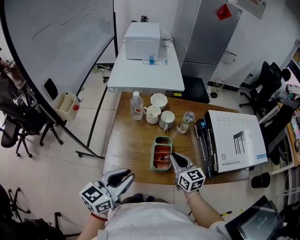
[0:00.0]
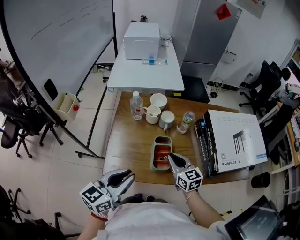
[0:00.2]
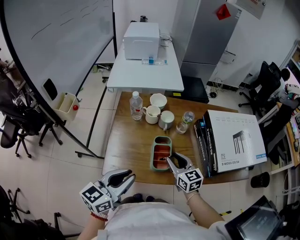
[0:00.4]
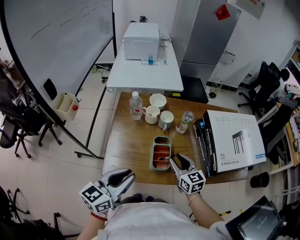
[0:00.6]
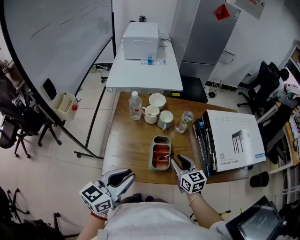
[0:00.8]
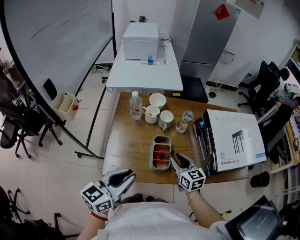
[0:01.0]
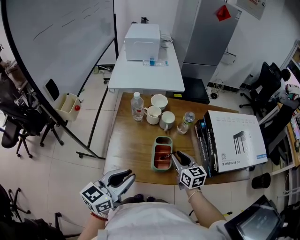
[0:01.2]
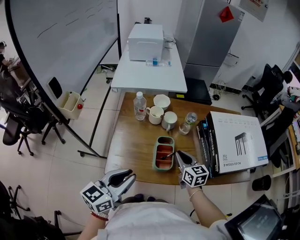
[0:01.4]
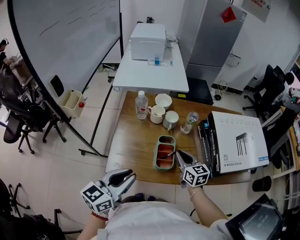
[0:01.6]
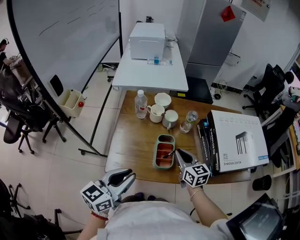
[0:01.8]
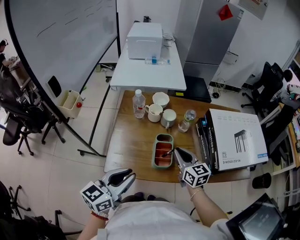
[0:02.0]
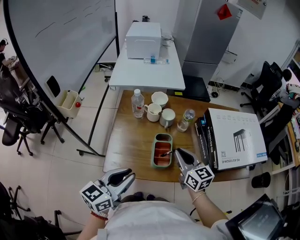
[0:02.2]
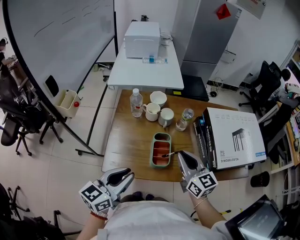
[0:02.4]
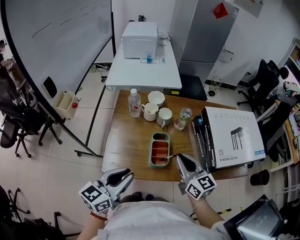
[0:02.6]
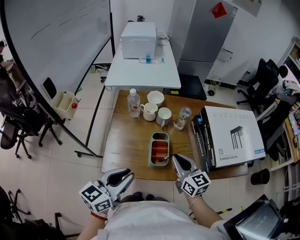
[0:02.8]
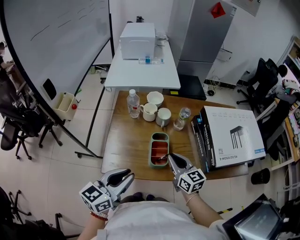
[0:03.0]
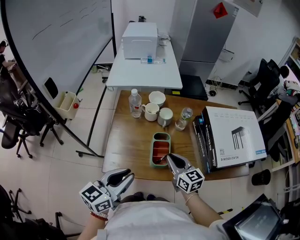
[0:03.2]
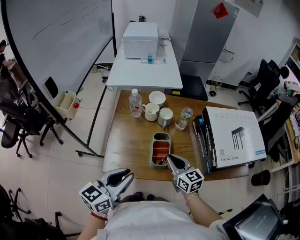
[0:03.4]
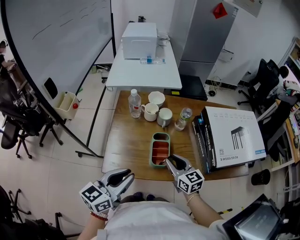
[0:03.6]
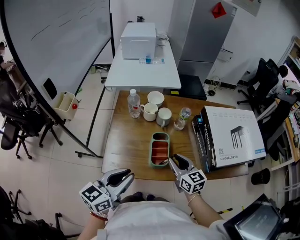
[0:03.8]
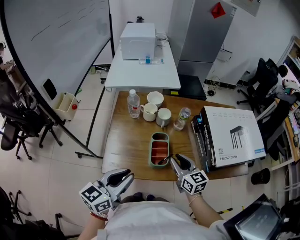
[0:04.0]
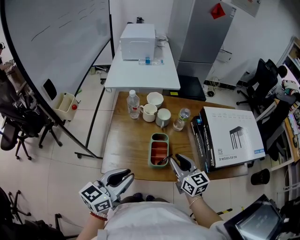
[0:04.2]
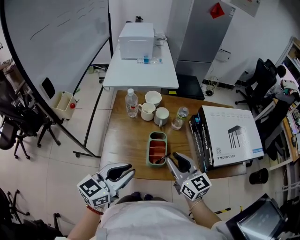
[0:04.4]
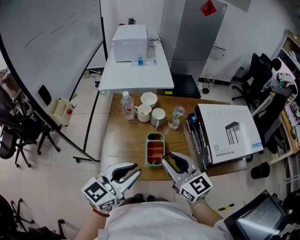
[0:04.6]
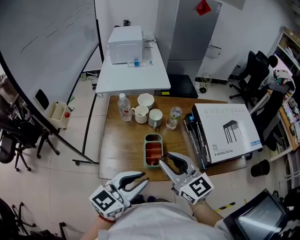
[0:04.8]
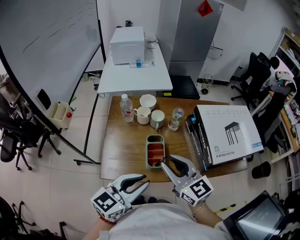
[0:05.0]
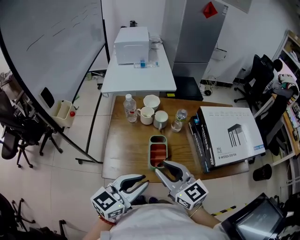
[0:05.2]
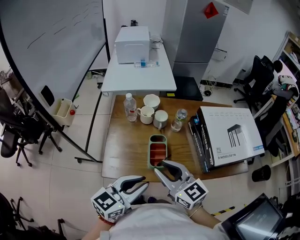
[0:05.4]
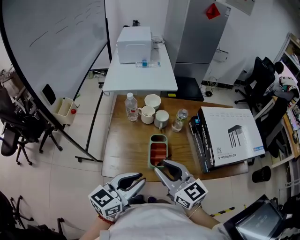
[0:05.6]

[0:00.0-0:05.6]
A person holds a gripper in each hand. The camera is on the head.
0:00.0 to 0:01.4: The right gripper opens, then closes again.
0:01.4 to 0:02.8: The right gripper moves upward and backward, some 10 cm.
0:02.8 to 0:04.2: The grippers stay close to where they were, moving slightly.
0:04.2 to 0:05.6: The right gripper goes some 15 cm upward, to the left and backward.

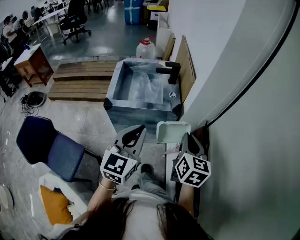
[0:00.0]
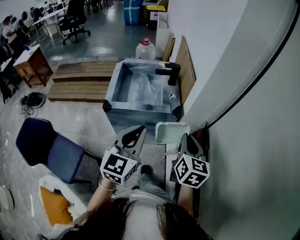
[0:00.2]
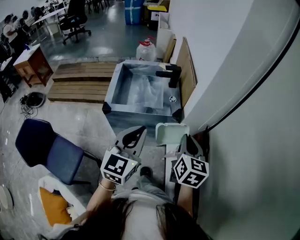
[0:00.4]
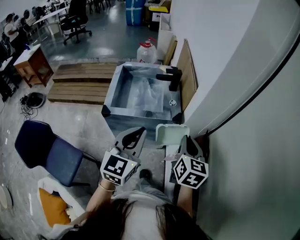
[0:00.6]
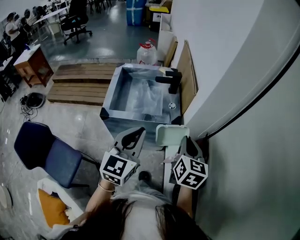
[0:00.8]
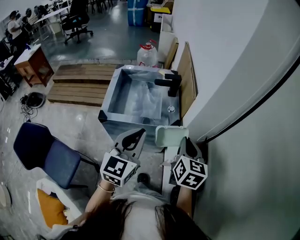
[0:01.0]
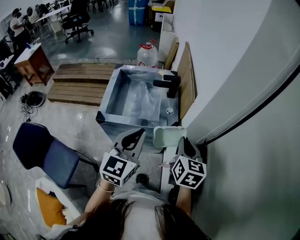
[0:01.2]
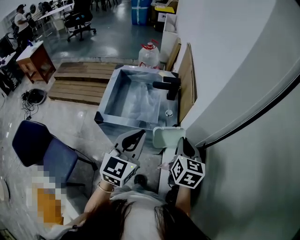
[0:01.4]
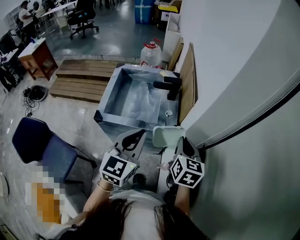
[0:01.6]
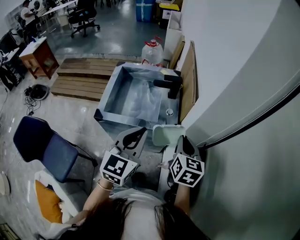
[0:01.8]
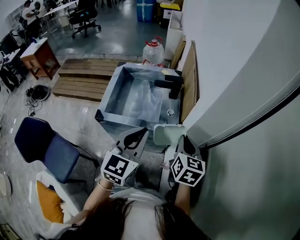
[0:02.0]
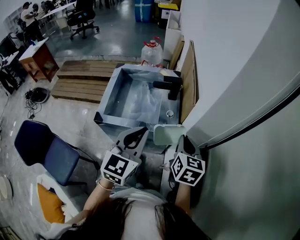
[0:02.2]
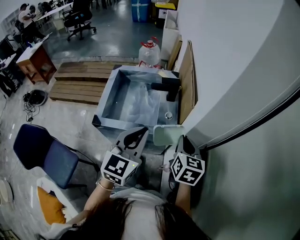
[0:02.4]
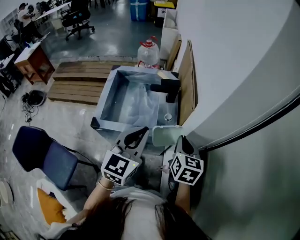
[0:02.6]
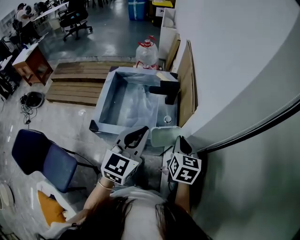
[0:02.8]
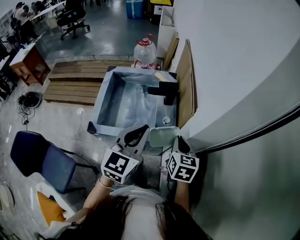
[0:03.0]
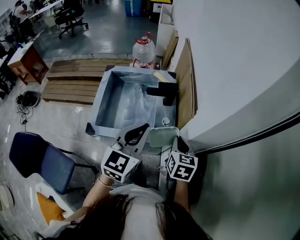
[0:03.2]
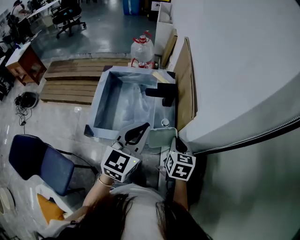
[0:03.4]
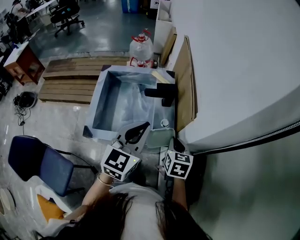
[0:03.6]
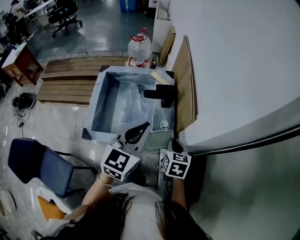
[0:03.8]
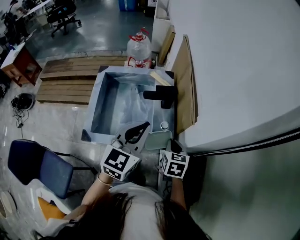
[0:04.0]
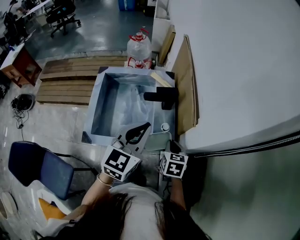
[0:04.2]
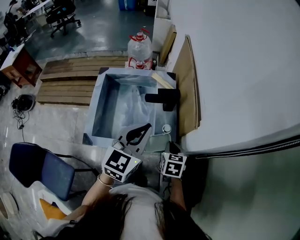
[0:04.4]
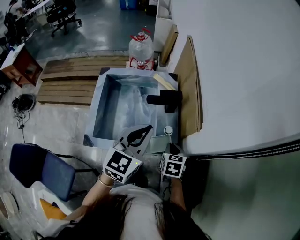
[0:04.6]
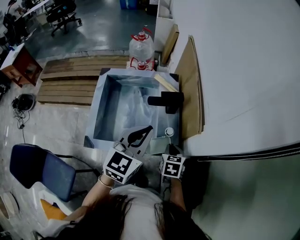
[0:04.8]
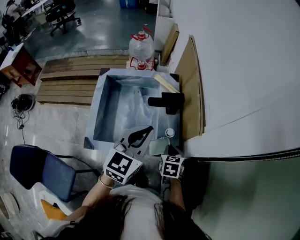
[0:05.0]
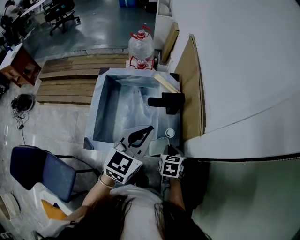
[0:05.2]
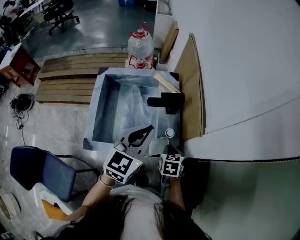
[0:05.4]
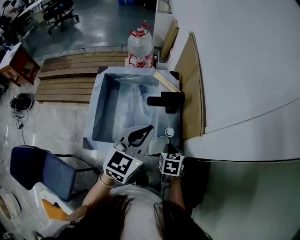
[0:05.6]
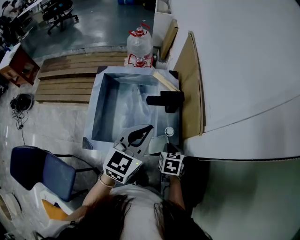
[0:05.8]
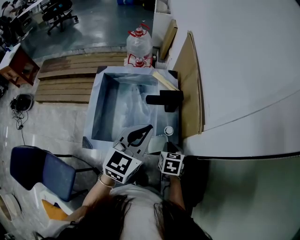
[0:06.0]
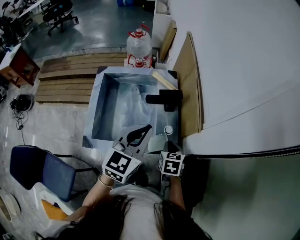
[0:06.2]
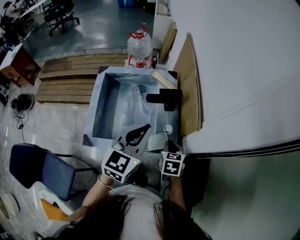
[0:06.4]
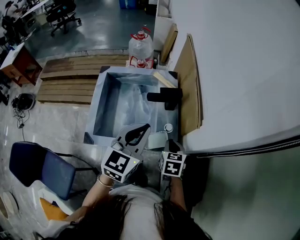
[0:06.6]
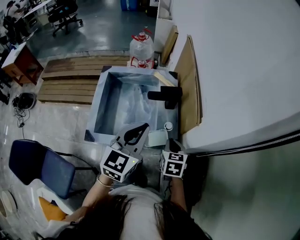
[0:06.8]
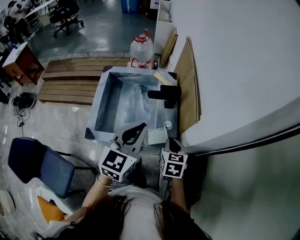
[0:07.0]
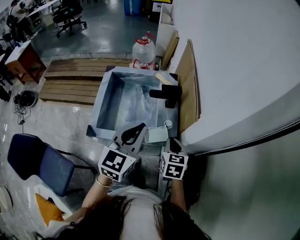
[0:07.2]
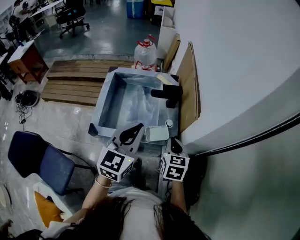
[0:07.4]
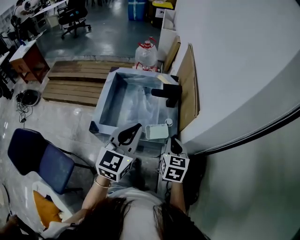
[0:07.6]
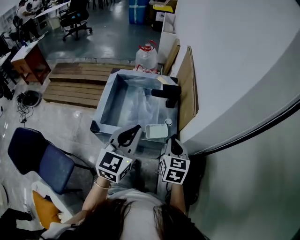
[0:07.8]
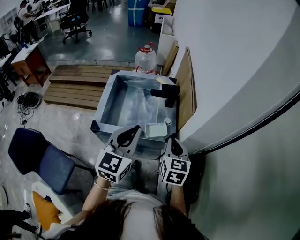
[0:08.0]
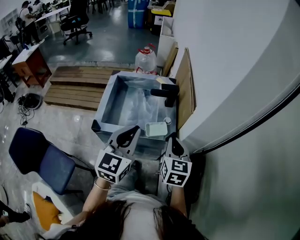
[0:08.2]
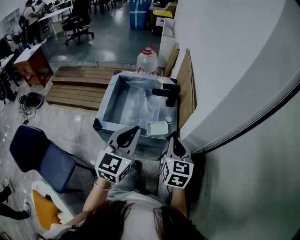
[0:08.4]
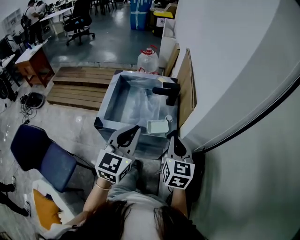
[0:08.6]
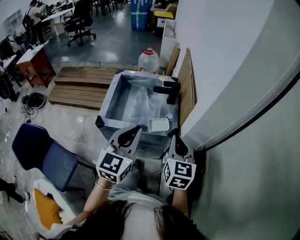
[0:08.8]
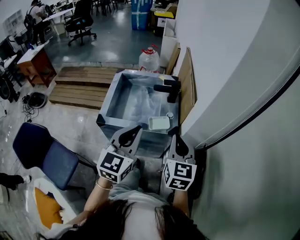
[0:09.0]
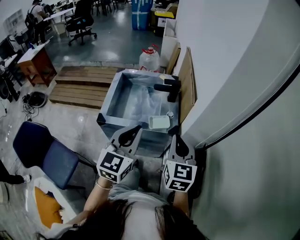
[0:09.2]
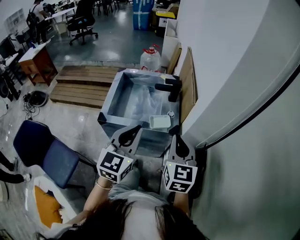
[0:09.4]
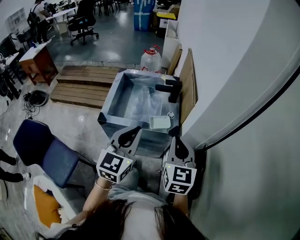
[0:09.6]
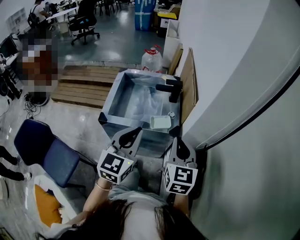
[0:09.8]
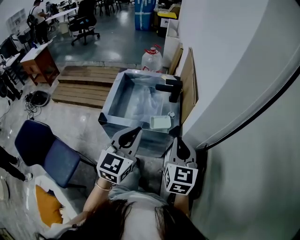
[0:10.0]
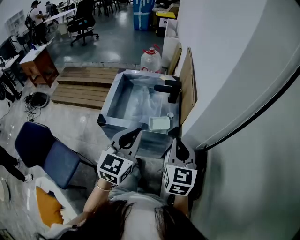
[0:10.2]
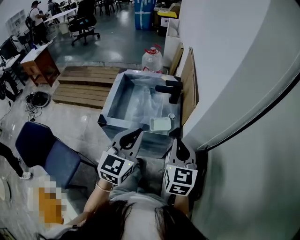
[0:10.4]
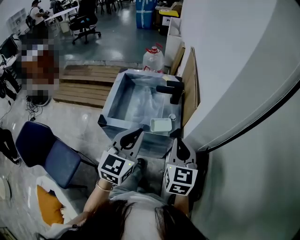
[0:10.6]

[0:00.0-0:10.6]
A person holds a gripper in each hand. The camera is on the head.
0:00.0 to 0:01.6: Both grippers travel together forward, roughly 15 cm.
0:01.6 to 0:03.0: The grippers both shift forward by roughly 10 cm.
0:03.0 to 0:04.6: The left gripper goes some 10 cm forward. Meanwhile the right gripper goes about 15 cm downward and forward.
0:04.6 to 0:06.0: There are only small adjustments of the grippers.
0:06.0 to 0:07.6: The left gripper goes some 10 cm backward. Meanwhile the right gripper is displaced upward and backward by roughly 15 cm, and swivels some 20 degrees.
0:07.6 to 0:09.0: The right gripper goes about 15 cm upward and backward. The left gripper heads backward, covering approximately 10 cm.
0:09.0 to 0:10.6: There are only small adjustments of the grippers.

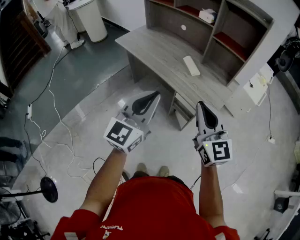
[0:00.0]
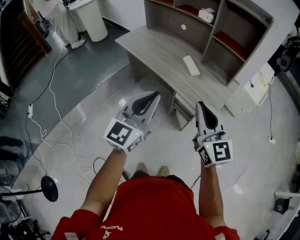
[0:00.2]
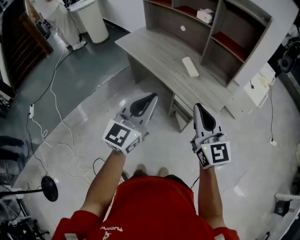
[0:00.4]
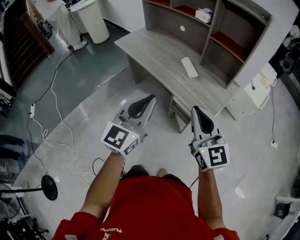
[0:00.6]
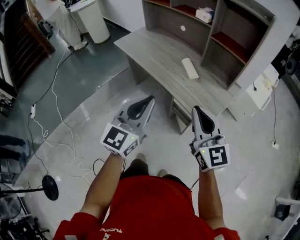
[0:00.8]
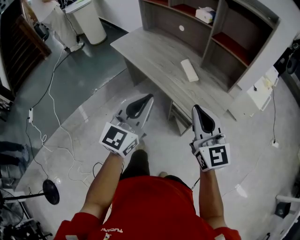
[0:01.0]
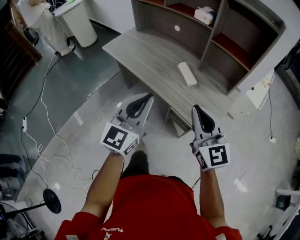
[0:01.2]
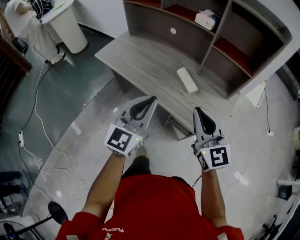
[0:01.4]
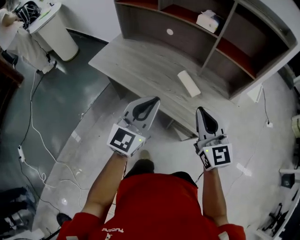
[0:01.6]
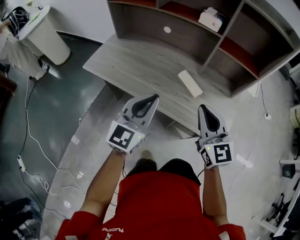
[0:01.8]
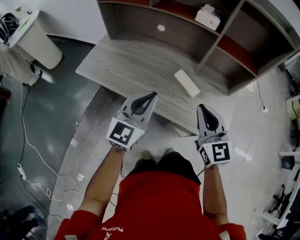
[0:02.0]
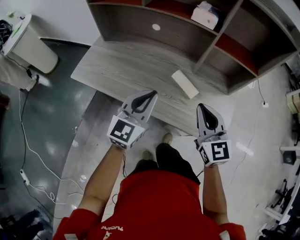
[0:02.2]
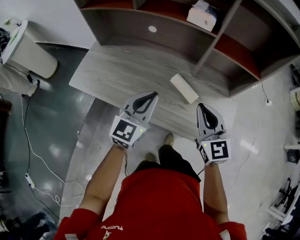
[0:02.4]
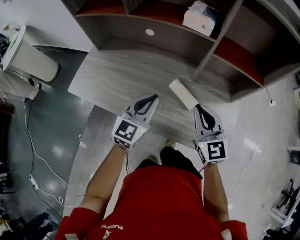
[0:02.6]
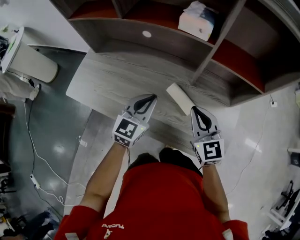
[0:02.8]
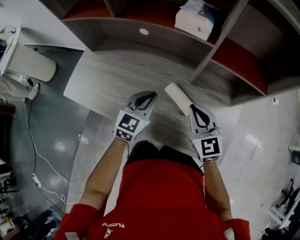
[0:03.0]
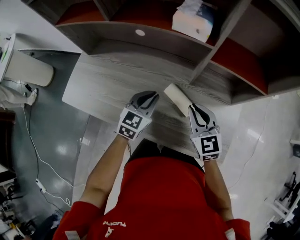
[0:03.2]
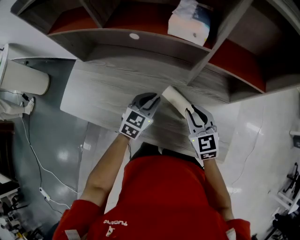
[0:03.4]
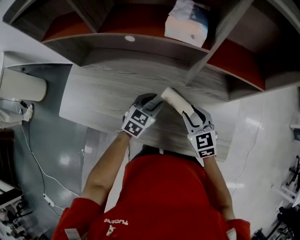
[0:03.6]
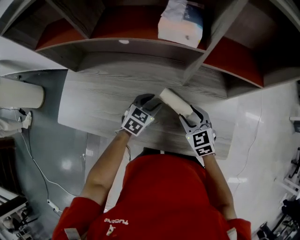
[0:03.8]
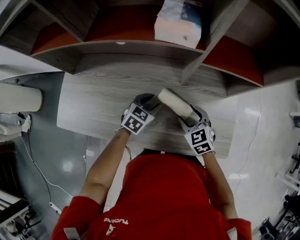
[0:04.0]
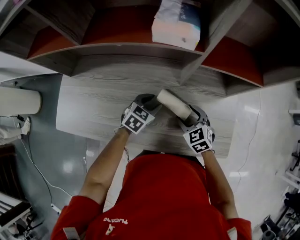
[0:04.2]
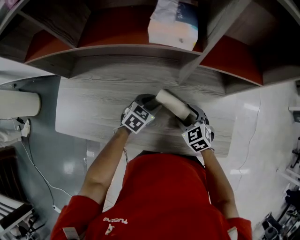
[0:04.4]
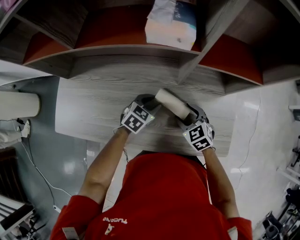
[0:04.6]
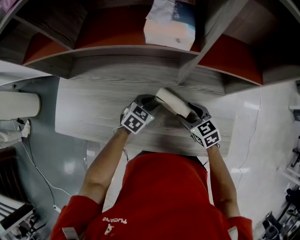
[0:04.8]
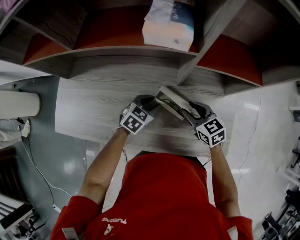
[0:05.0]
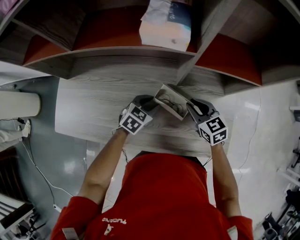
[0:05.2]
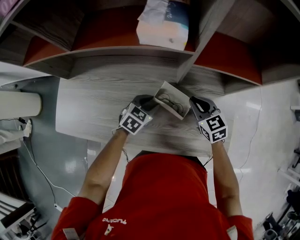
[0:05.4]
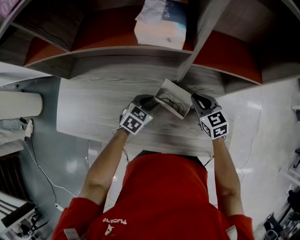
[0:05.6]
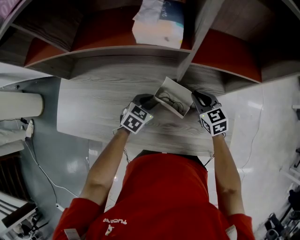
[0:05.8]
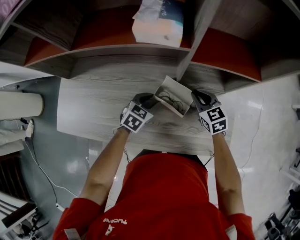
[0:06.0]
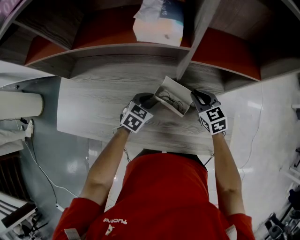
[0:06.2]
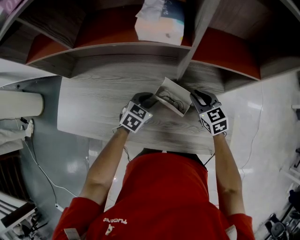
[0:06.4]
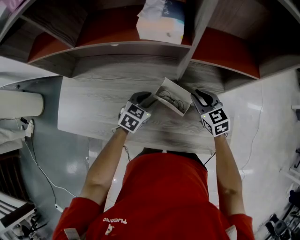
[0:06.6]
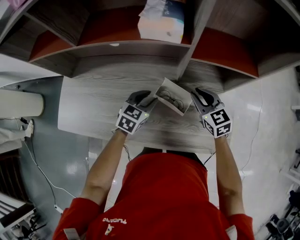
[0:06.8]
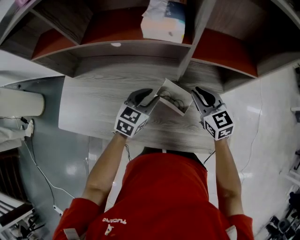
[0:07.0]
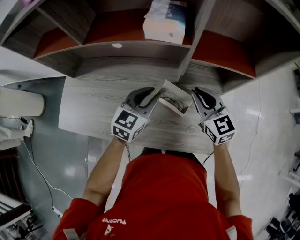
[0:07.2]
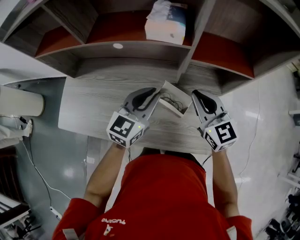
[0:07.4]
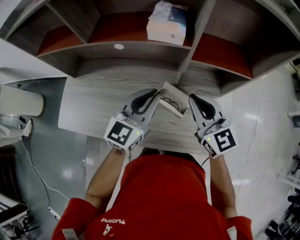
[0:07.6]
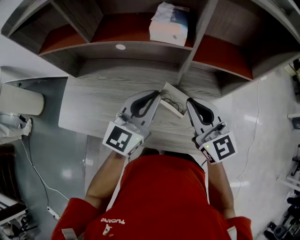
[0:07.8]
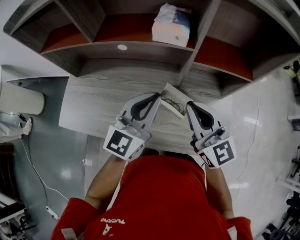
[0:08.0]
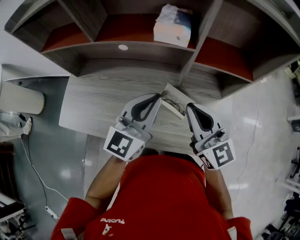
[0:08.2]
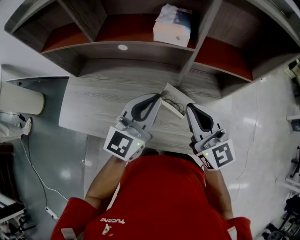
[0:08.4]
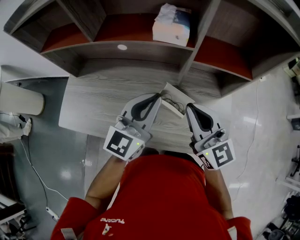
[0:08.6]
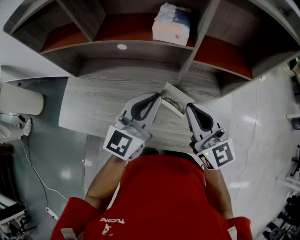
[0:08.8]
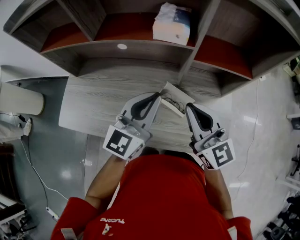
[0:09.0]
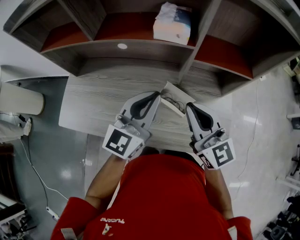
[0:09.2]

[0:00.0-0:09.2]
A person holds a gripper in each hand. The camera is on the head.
0:00.0 to 0:01.6: The two grippers go roughly 20 cm forward.
0:01.6 to 0:03.0: The two grippers go some 25 cm forward and downward. The left gripper rotates roughly 20 degrees.
0:03.0 to 0:04.6: Both grippers move downward, approximately 15 cm. The right gripper swivels roughly 30 degrees, and opens. The left gripper changes its angle by roughly 40 degrees, and opens.
0:04.6 to 0:06.2: The right gripper is displaced forward and to the right by some 10 cm, and closes its fingers.
0:06.2 to 0:07.6: The grippers both shift upward by roughly 20 cm. The right gripper swivels approximately 30 degrees; the left gripper angles its fingers upward, by about 40 degrees, and closes its fingers.
0:07.6 to 0:09.2: The right gripper shifts by roughly 5 cm; the left gripper moves roughly 5 cm.
